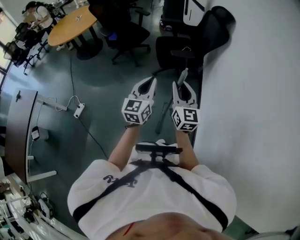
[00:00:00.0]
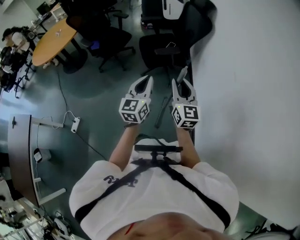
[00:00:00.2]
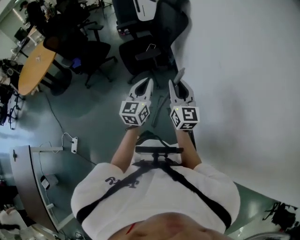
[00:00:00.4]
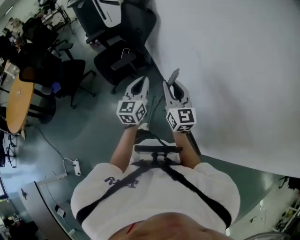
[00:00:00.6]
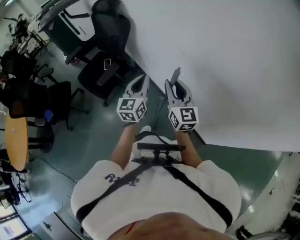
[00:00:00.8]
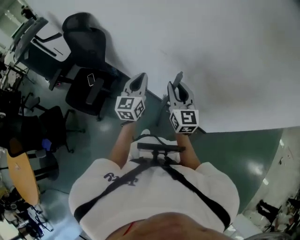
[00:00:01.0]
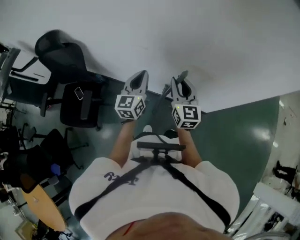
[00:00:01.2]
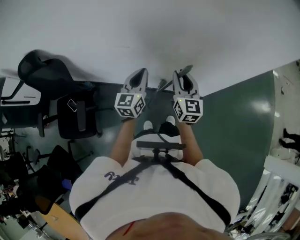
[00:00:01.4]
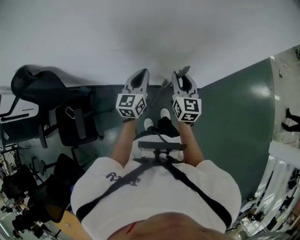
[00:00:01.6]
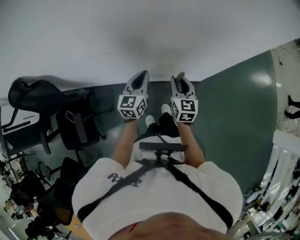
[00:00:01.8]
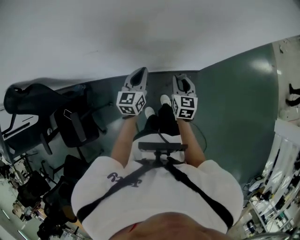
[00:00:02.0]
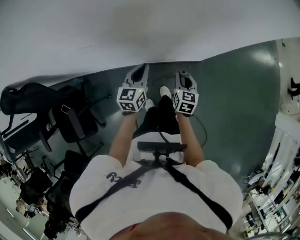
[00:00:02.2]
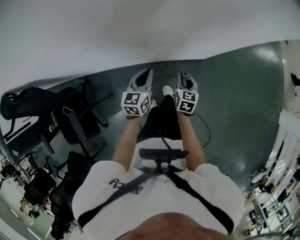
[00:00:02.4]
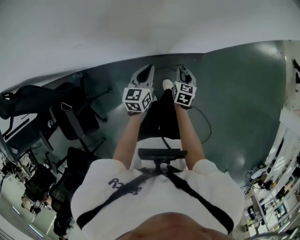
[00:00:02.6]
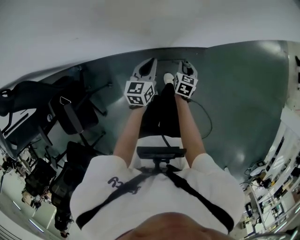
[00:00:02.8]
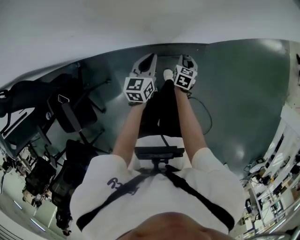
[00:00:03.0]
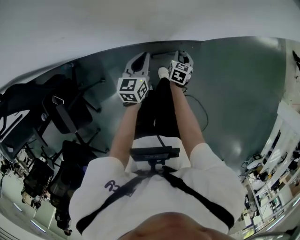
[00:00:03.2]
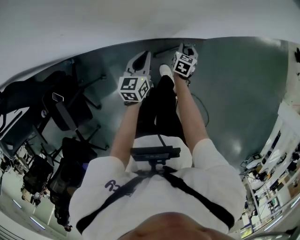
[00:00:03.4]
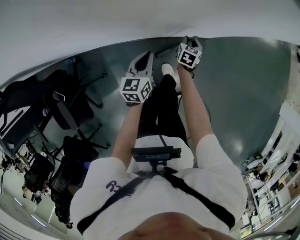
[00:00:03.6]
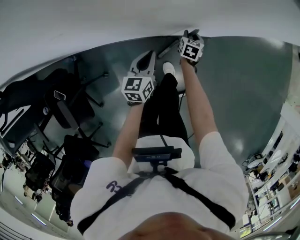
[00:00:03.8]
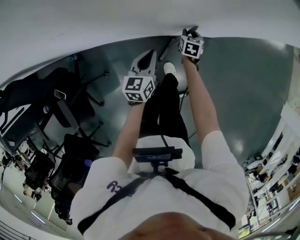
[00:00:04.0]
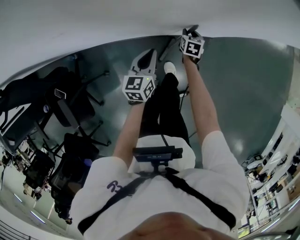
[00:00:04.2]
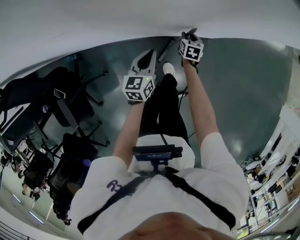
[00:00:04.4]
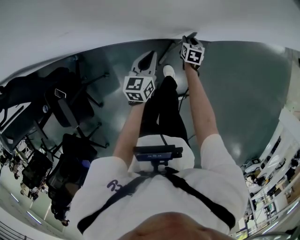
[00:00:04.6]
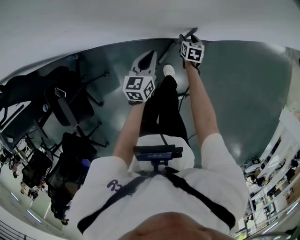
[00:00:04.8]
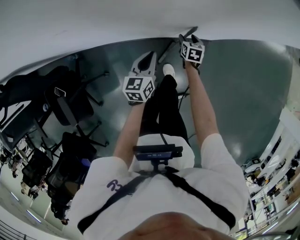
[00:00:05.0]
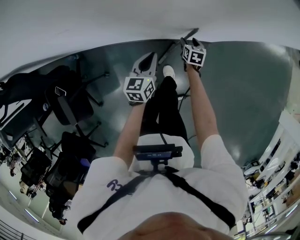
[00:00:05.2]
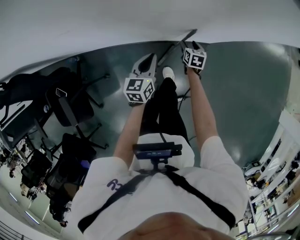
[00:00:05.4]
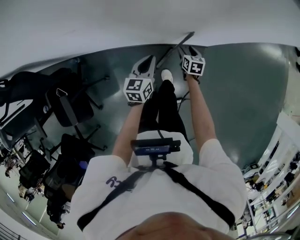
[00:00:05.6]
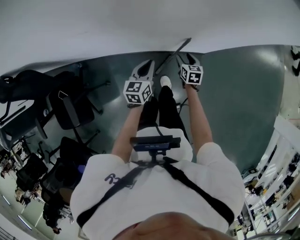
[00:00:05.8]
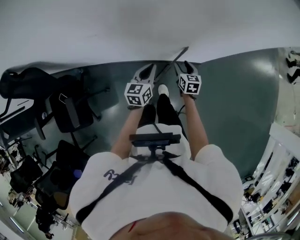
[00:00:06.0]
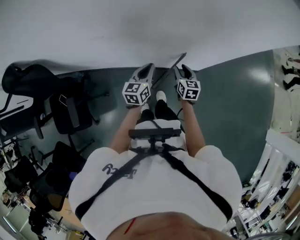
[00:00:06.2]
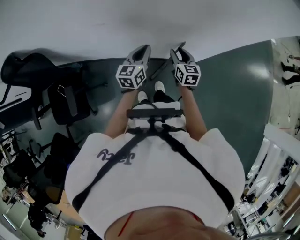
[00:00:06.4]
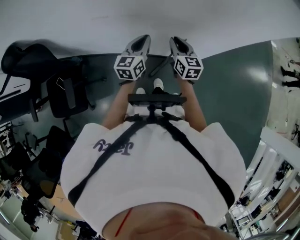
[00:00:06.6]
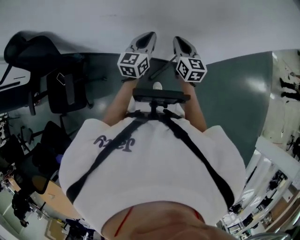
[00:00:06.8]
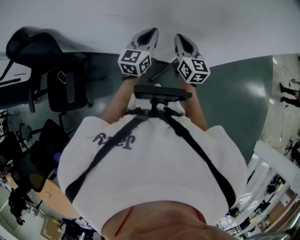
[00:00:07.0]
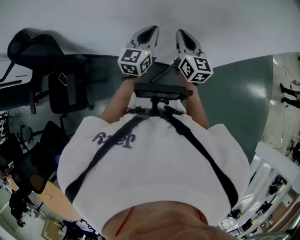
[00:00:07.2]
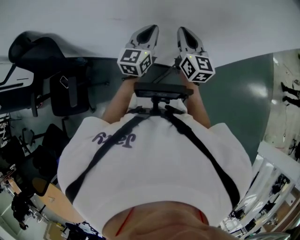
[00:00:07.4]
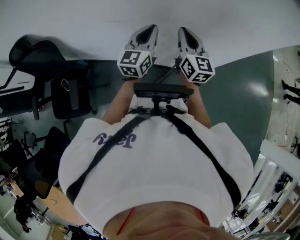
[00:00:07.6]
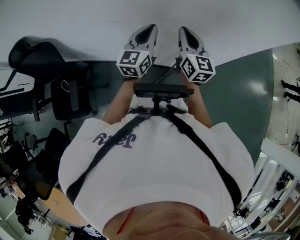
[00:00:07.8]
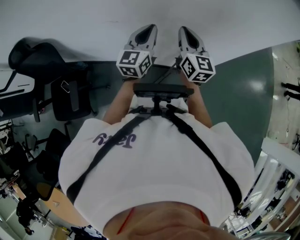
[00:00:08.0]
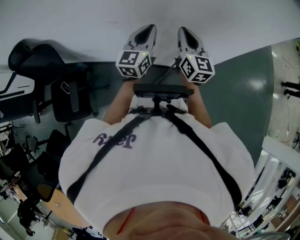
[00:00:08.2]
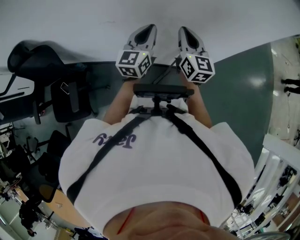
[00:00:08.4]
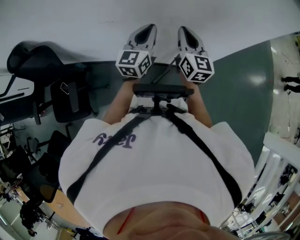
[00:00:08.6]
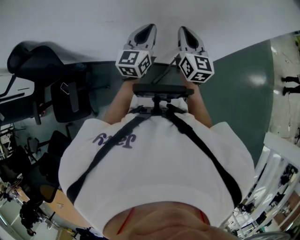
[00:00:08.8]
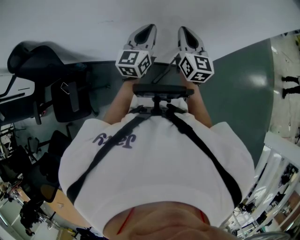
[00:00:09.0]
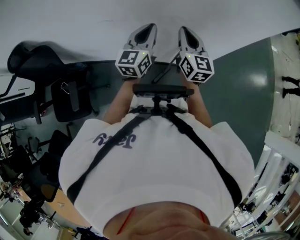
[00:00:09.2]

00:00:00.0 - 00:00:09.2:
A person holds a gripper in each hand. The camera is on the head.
00:00:00.0 - 00:00:01.6: The right gripper changes place by some 40 cm, and swivels about 100 degrees; the left gripper changes place by some 50 cm, and rotates approximately 100 degrees.
00:00:01.6 - 00:00:03.0: The right gripper moves downward, about 35 cm, and points its fingers roughly 40 degrees further downward. The left gripper moves downward, approximately 20 cm.
00:00:03.0 - 00:00:04.6: The right gripper is displaced forward by roughly 10 cm.
00:00:04.6 - 00:00:06.2: The right gripper heads upward, covering roughly 25 cm, and swivels some 20 degrees. Meanwhile the left gripper goes about 10 cm upward.
00:00:06.2 - 00:00:07.6: Both grippers move upward, approximately 25 cm. The left gripper turns by about 20 degrees, while the right gripper tips its fingers upward by roughly 30 degrees, and closes its fingers.
00:00:07.6 - 00:00:09.2: The grippers stay close to where they were, moving slightly.

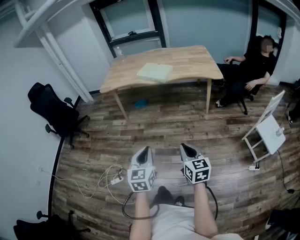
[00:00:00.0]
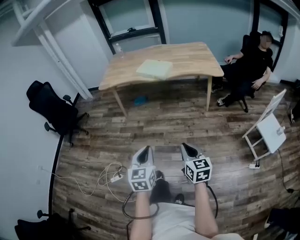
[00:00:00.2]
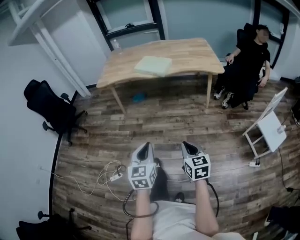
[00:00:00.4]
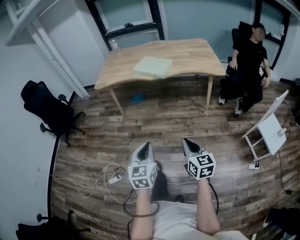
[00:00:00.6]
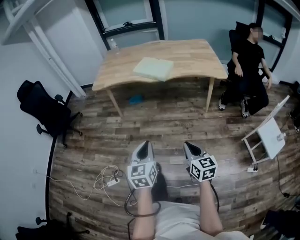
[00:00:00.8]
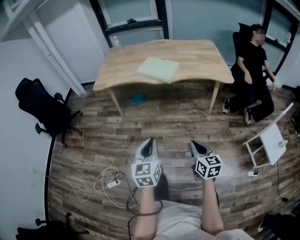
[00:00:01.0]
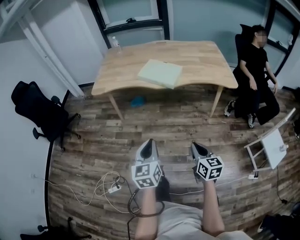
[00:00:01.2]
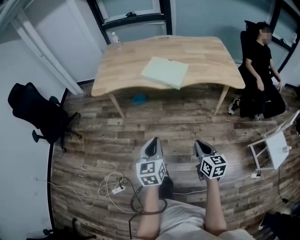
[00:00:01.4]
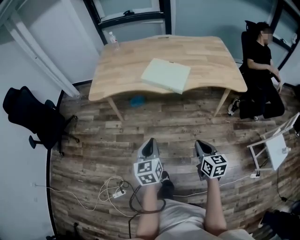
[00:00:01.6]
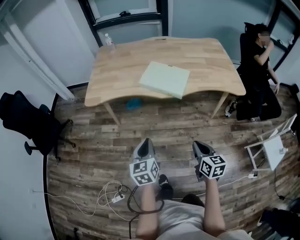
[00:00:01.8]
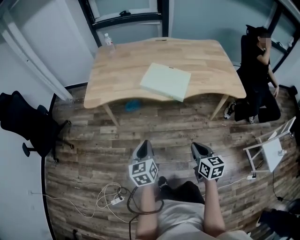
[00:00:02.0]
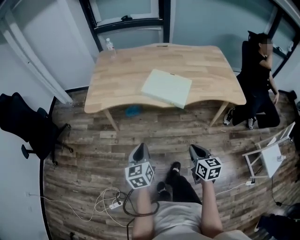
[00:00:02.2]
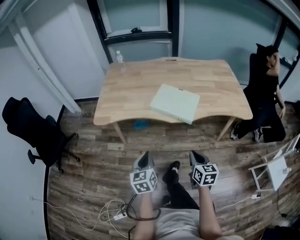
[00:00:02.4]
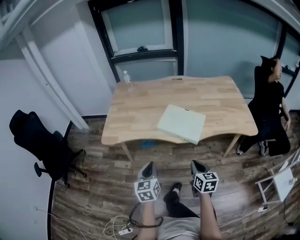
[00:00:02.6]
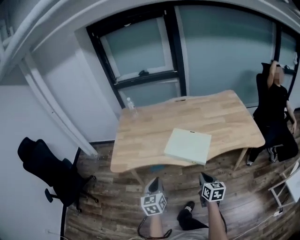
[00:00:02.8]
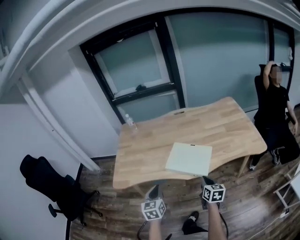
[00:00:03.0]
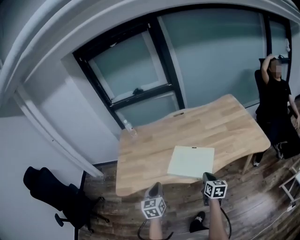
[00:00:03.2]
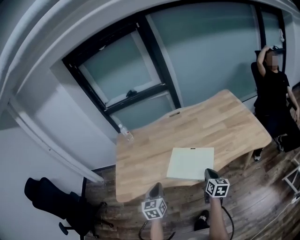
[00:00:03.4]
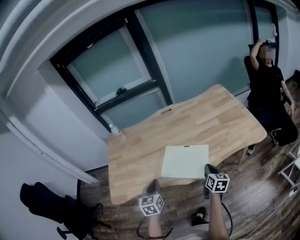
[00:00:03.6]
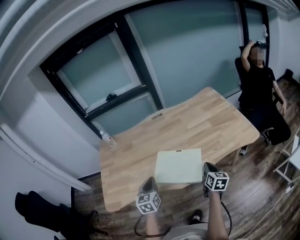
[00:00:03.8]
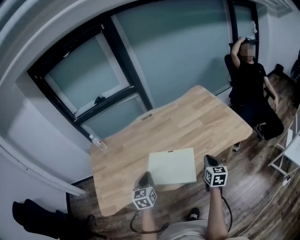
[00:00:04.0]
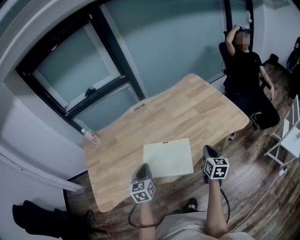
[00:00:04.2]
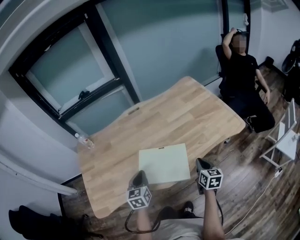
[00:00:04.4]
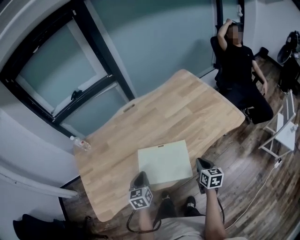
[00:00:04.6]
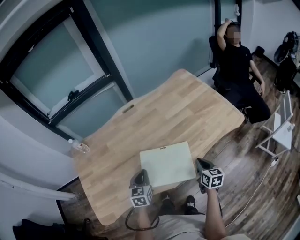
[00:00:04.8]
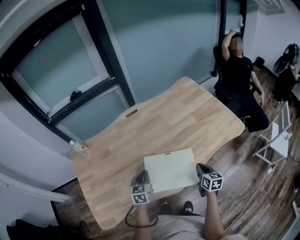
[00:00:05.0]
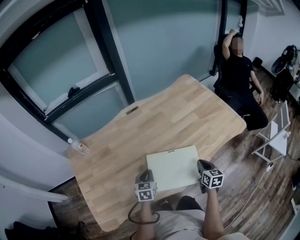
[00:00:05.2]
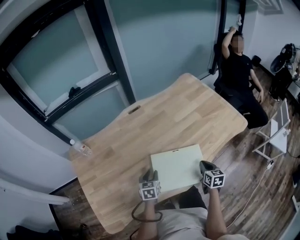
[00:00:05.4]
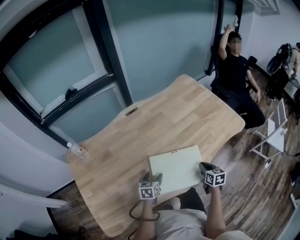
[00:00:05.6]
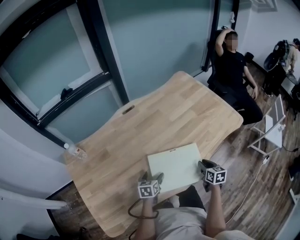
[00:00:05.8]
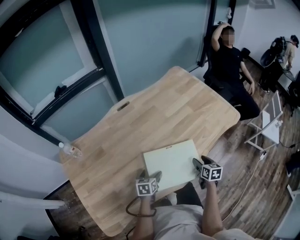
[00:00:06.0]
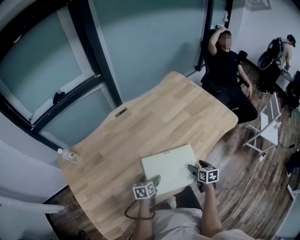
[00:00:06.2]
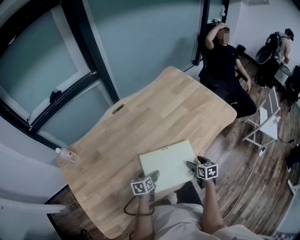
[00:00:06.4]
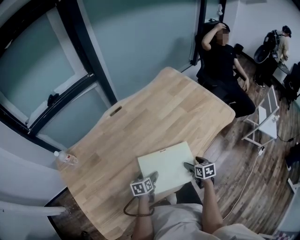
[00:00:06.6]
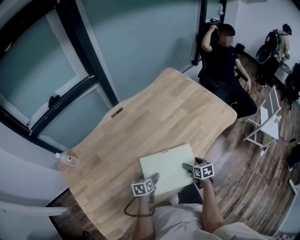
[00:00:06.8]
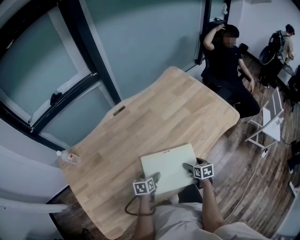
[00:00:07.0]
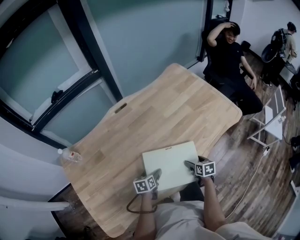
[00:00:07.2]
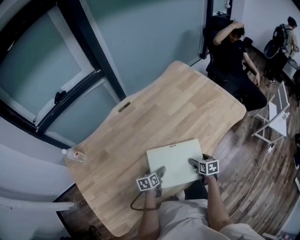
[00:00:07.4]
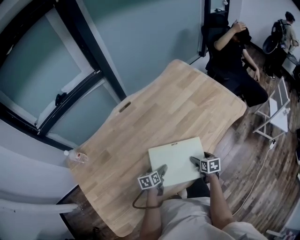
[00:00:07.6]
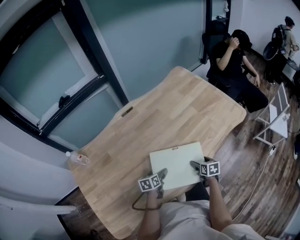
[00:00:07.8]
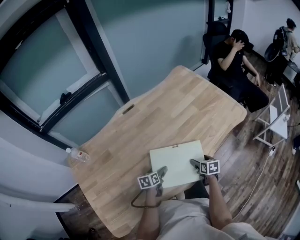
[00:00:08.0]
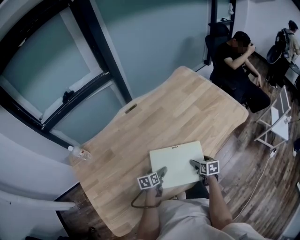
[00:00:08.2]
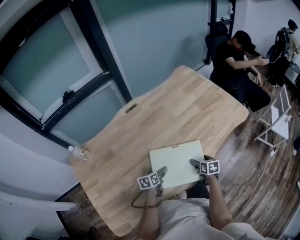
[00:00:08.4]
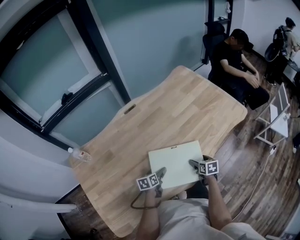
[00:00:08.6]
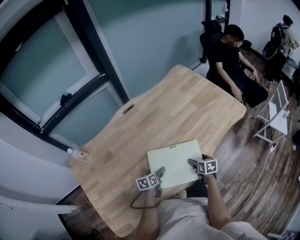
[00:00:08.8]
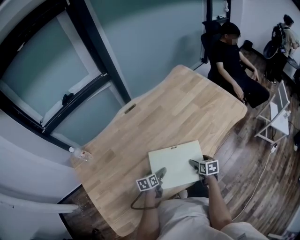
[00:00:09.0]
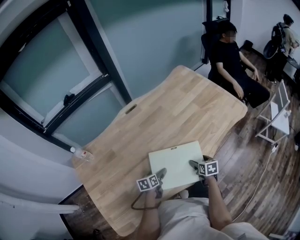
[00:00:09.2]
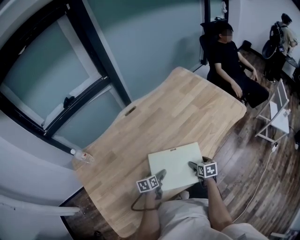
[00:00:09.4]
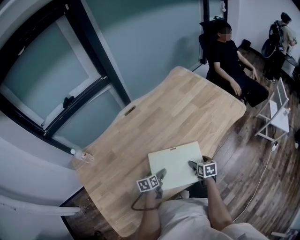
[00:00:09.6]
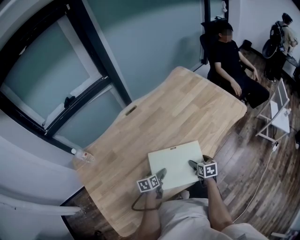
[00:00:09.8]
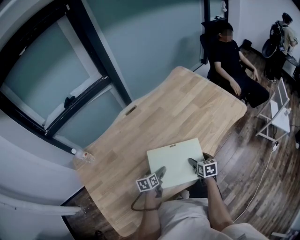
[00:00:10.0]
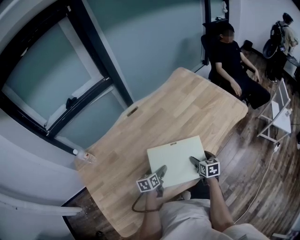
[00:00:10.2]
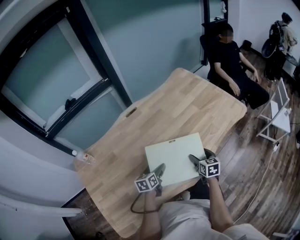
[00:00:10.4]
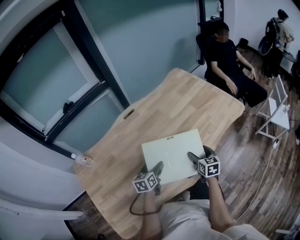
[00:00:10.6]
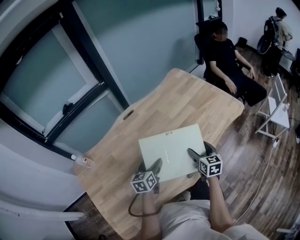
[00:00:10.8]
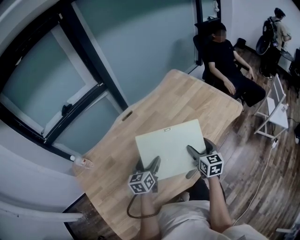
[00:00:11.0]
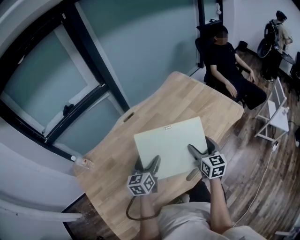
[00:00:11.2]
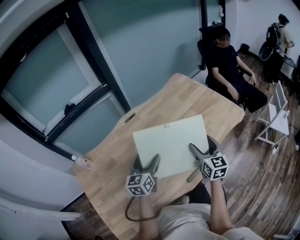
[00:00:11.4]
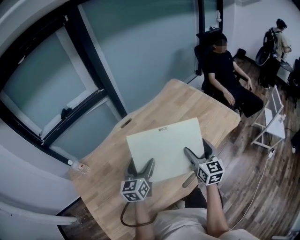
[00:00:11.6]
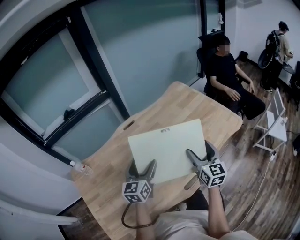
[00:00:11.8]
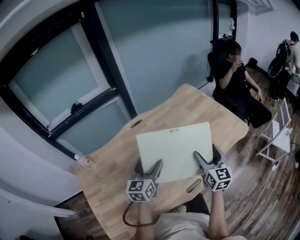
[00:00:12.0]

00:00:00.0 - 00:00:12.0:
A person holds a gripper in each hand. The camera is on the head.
00:00:00.0 - 00:00:01.6: The two grippers travel together, forward, roughly 40 cm.
00:00:01.6 - 00:00:03.0: Both grippers move forward, roughly 30 cm.
00:00:03.0 - 00:00:04.4: The left gripper moves forward, approximately 25 cm, while the right gripper is displaced forward and to the right by some 20 cm, and changes its angle by approximately 20 degrees.
00:00:04.4 - 00:00:06.0: The left gripper goes about 20 cm downward and forward, turns by roughly 30 degrees, and opens its fingers, while the right gripper is displaced downward, to the left and forward by about 15 cm, and opens up.
00:00:06.0 - 00:00:07.6: The right gripper is displaced downward by roughly 5 cm, and opens.
00:00:07.6 - 00:00:09.0: The grippers make only small movements.
00:00:09.0 - 00:00:10.4: Both grippers move upward, roughly 10 cm.
00:00:10.4 - 00:00:12.0: The two grippers go about 20 cm upward. The left gripper changes its angle by about 30 degrees. Meanwhile the right gripper changes its angle by roughly 30 degrees.

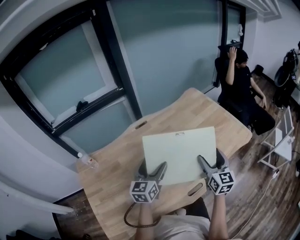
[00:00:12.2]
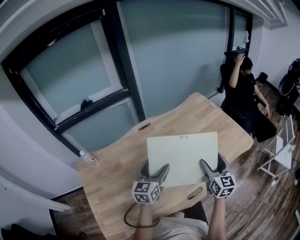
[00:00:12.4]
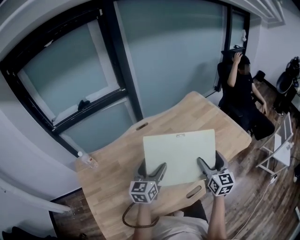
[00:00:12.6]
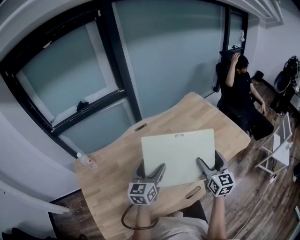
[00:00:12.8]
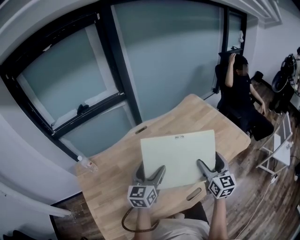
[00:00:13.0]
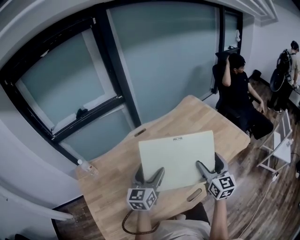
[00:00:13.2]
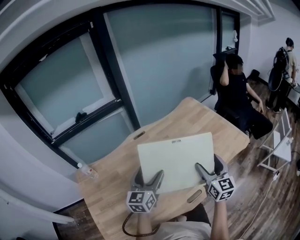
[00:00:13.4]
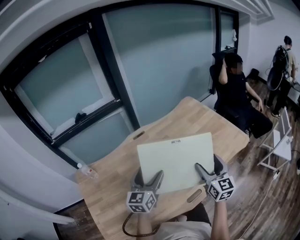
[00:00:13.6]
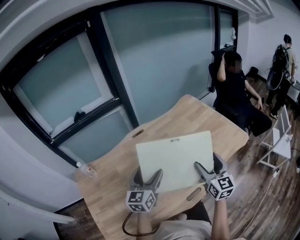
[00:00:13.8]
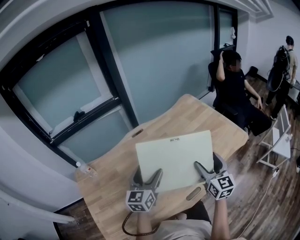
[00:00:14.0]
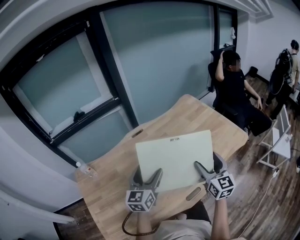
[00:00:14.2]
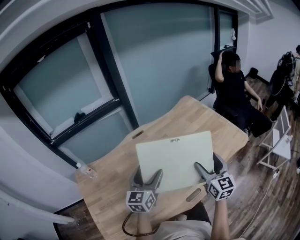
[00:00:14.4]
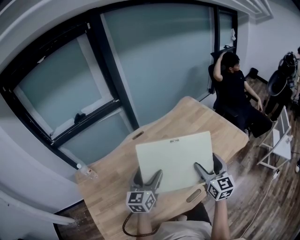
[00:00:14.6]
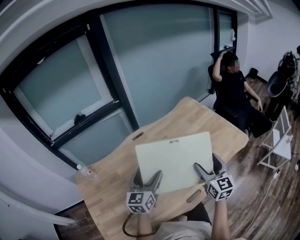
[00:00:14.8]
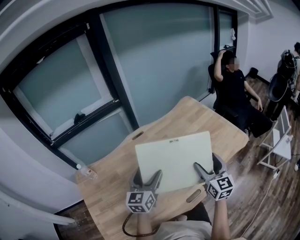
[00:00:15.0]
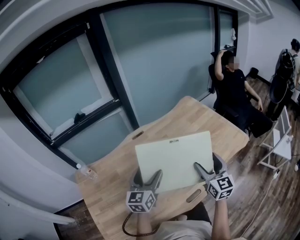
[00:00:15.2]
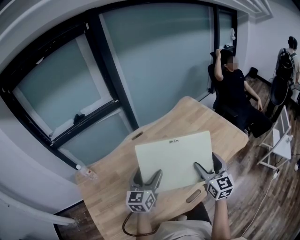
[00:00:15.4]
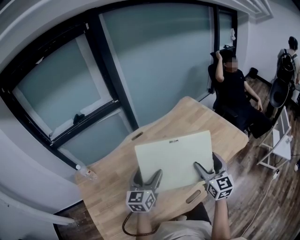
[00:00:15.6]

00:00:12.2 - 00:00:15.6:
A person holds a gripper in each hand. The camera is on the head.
00:00:12.2 - 00:00:15.6: The grippers make only small movements.
